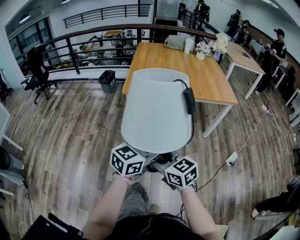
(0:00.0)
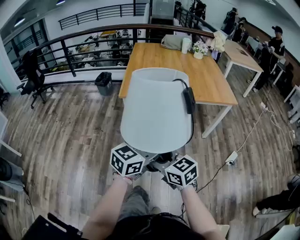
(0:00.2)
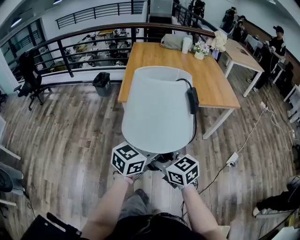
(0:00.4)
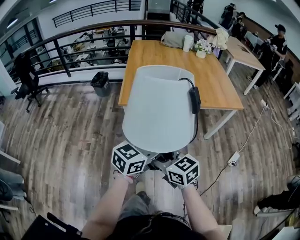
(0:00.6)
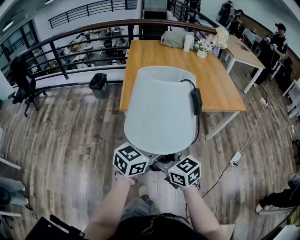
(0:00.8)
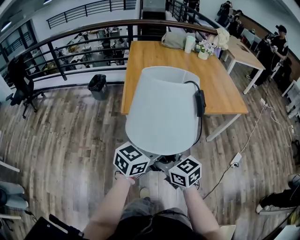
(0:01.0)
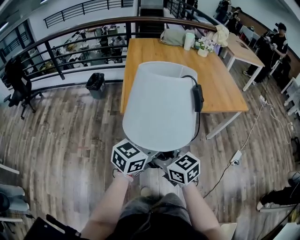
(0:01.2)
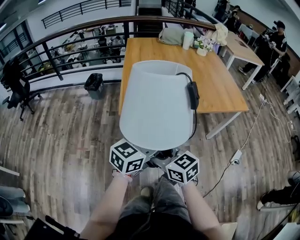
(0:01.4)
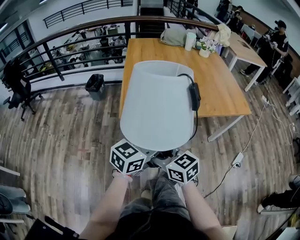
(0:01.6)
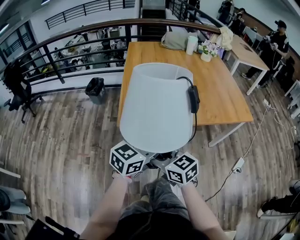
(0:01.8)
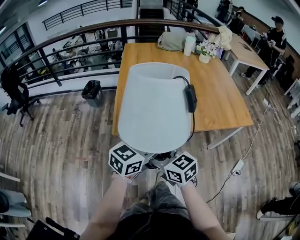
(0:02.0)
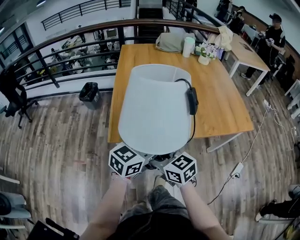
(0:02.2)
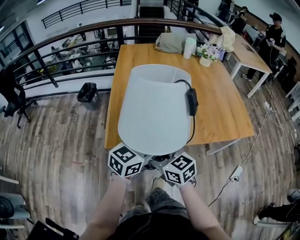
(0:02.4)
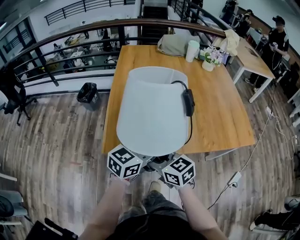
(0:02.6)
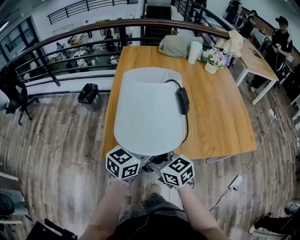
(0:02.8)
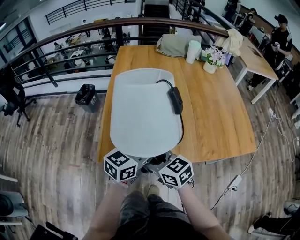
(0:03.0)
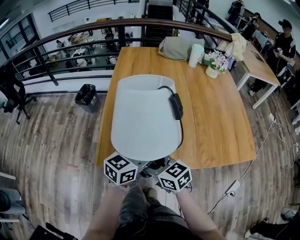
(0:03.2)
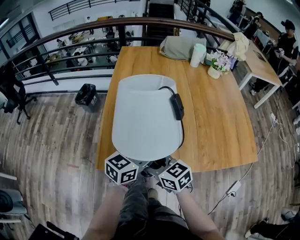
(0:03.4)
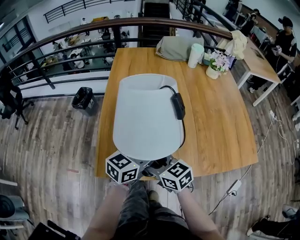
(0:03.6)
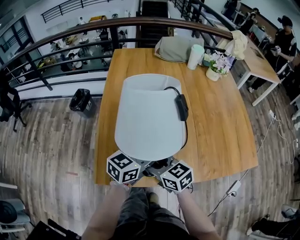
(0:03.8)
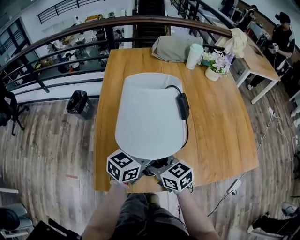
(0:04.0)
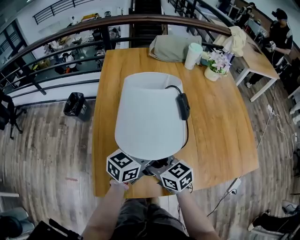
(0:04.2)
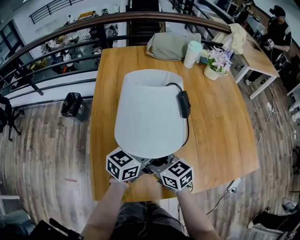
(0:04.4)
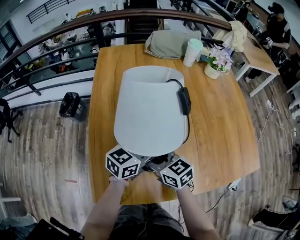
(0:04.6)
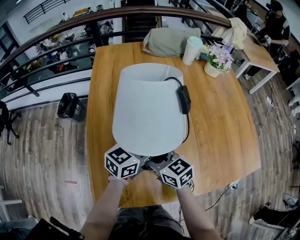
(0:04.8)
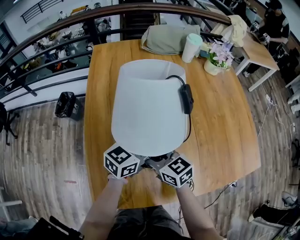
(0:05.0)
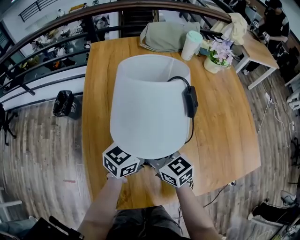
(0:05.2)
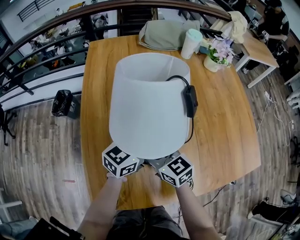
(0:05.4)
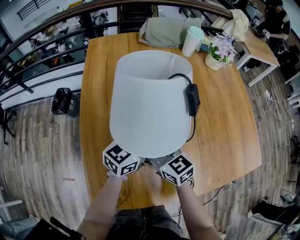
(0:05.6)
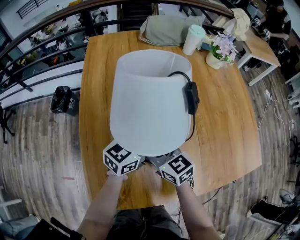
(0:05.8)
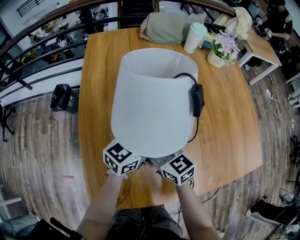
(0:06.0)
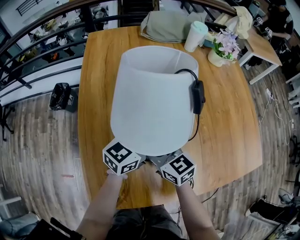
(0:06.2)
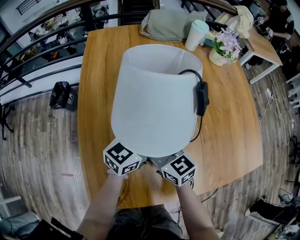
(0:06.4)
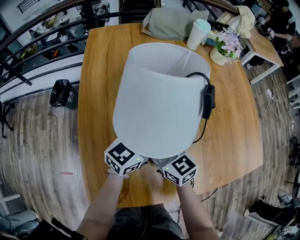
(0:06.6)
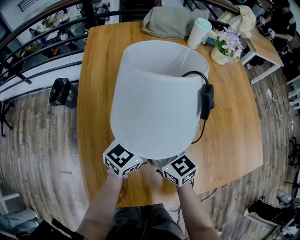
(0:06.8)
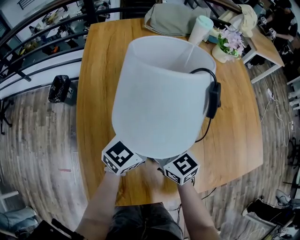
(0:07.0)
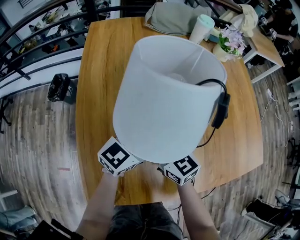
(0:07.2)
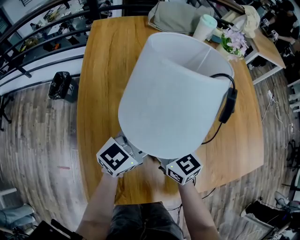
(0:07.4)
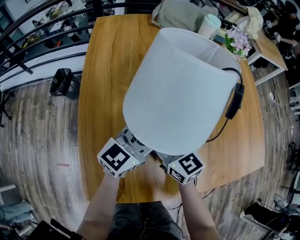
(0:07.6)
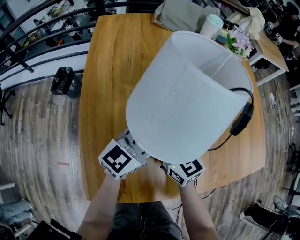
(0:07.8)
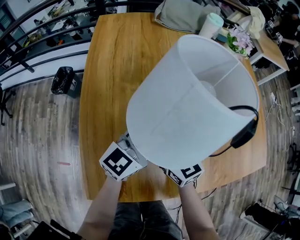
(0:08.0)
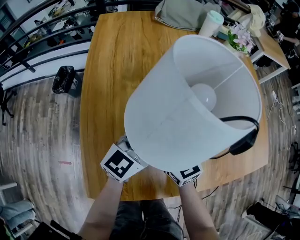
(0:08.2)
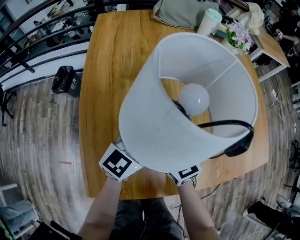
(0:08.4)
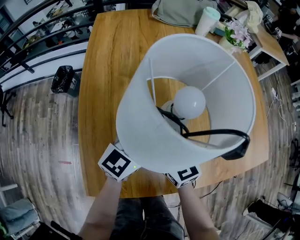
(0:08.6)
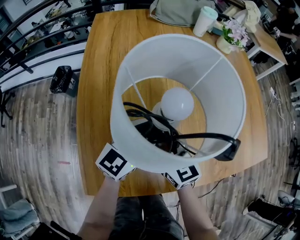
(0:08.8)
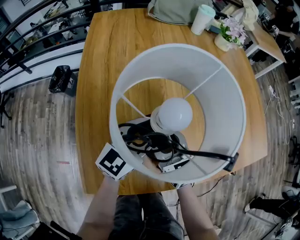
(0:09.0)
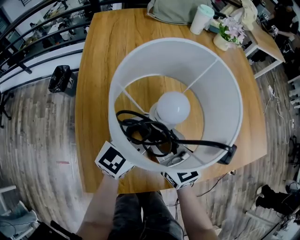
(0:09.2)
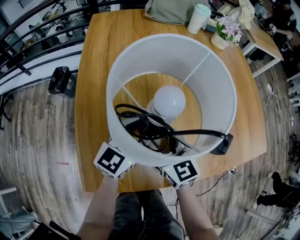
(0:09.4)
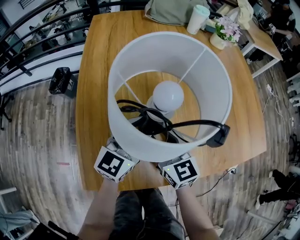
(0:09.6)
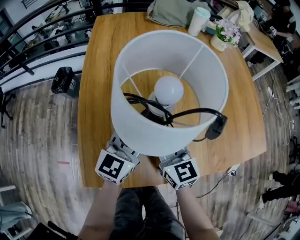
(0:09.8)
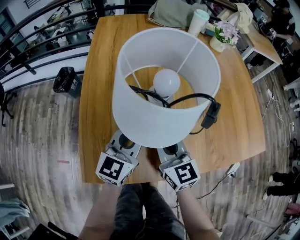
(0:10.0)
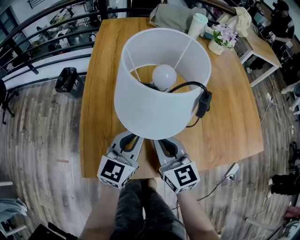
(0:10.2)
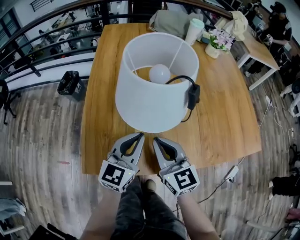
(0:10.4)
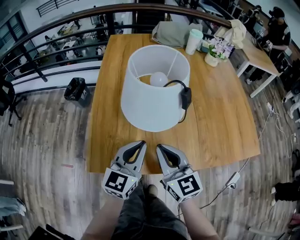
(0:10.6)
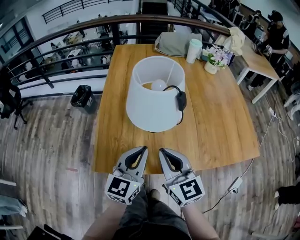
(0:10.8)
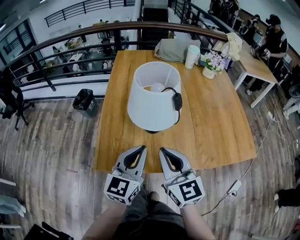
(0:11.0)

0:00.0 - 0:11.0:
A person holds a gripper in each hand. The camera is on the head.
0:00.0 - 0:01.6: The grippers both shift forward by roughly 25 cm.
0:01.6 - 0:03.2: The two grippers go about 25 cm forward.
0:03.2 - 0:04.8: The grippers both shift forward by some 20 cm.
0:04.8 - 0:07.8: The grippers stay close to where they were, moving slightly.
0:07.8 - 0:09.4: The right gripper is displaced backward by about 5 cm.
0:09.4 - 0:11.0: Both grippers move backward and upward, approximately 20 cm. The left gripper changes its angle by roughly 20 degrees, and closes; the right gripper closes up.

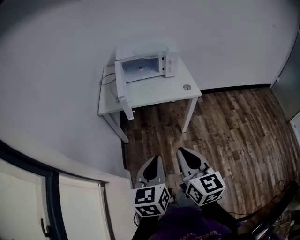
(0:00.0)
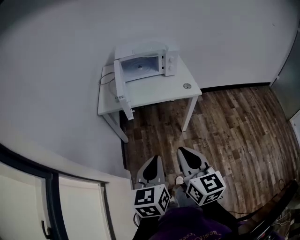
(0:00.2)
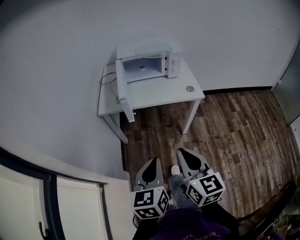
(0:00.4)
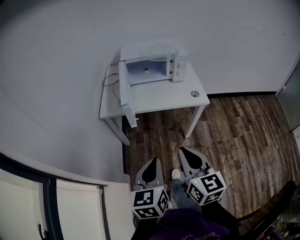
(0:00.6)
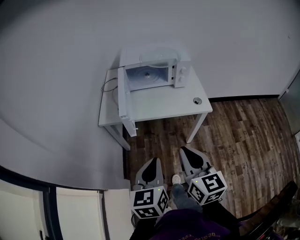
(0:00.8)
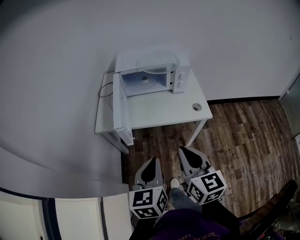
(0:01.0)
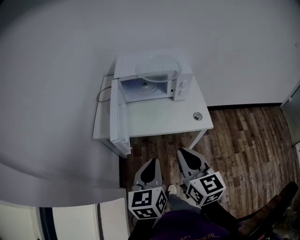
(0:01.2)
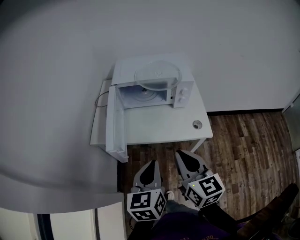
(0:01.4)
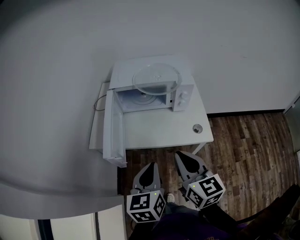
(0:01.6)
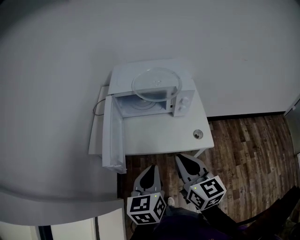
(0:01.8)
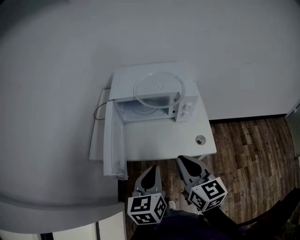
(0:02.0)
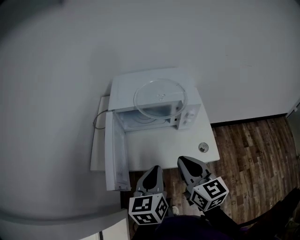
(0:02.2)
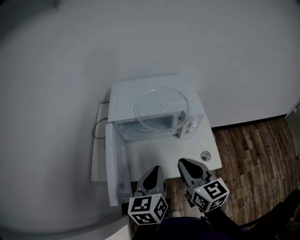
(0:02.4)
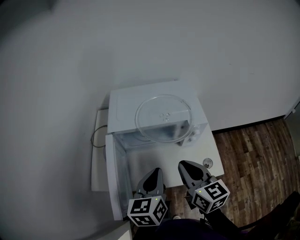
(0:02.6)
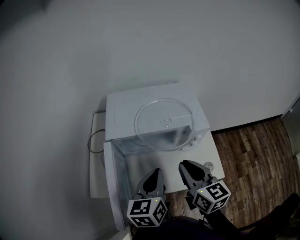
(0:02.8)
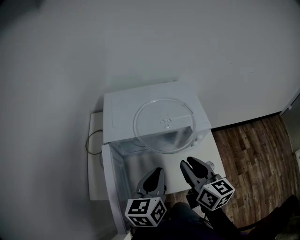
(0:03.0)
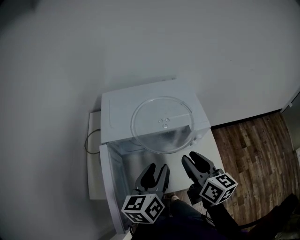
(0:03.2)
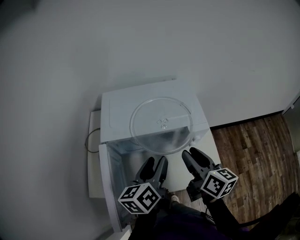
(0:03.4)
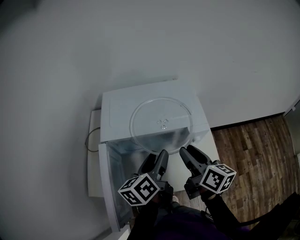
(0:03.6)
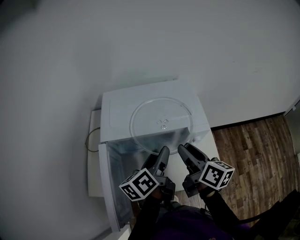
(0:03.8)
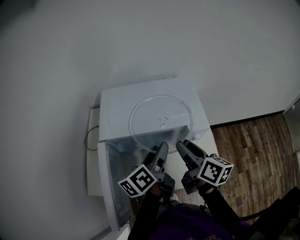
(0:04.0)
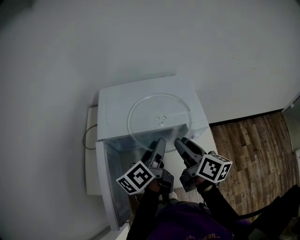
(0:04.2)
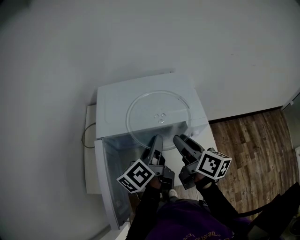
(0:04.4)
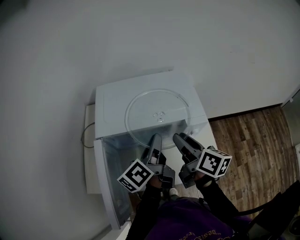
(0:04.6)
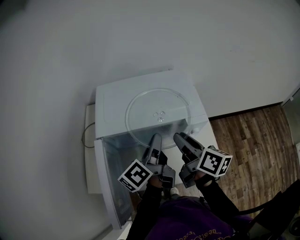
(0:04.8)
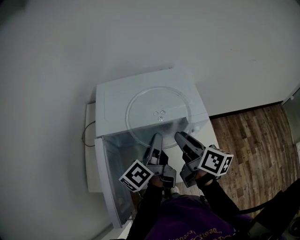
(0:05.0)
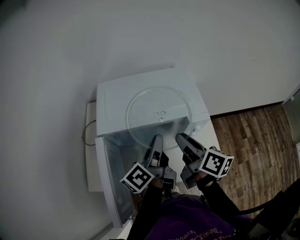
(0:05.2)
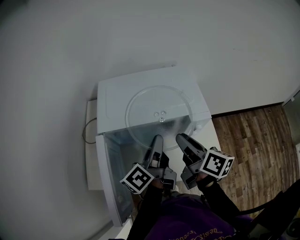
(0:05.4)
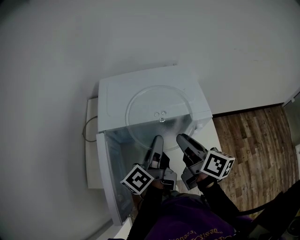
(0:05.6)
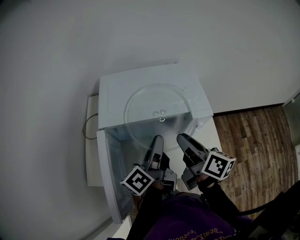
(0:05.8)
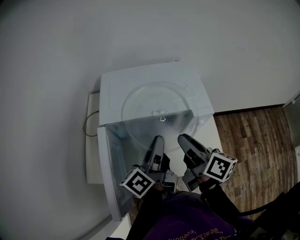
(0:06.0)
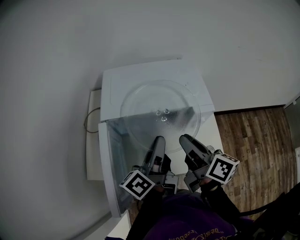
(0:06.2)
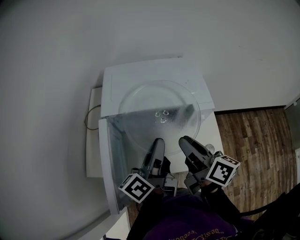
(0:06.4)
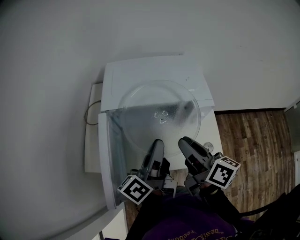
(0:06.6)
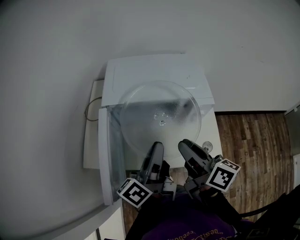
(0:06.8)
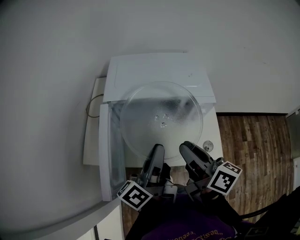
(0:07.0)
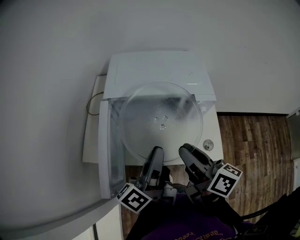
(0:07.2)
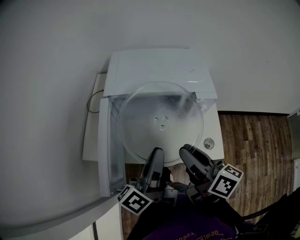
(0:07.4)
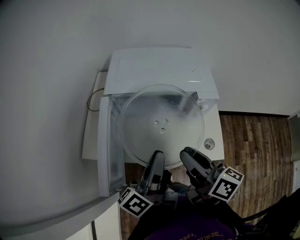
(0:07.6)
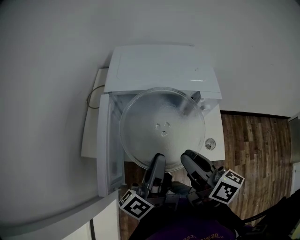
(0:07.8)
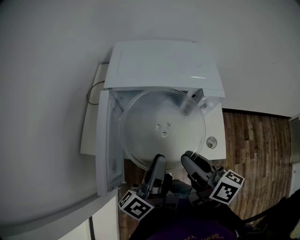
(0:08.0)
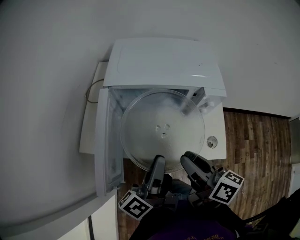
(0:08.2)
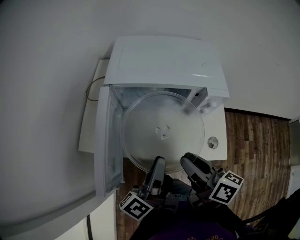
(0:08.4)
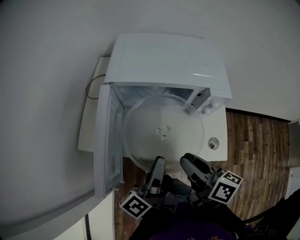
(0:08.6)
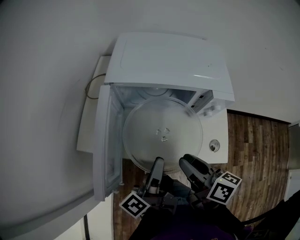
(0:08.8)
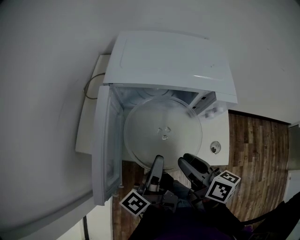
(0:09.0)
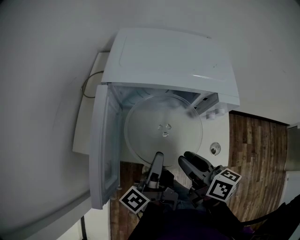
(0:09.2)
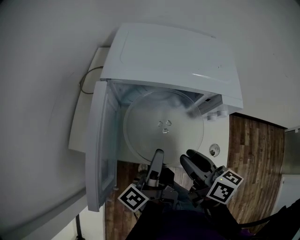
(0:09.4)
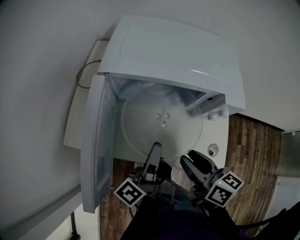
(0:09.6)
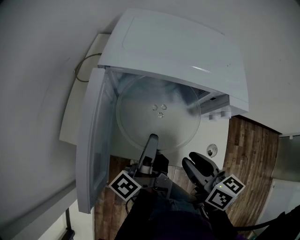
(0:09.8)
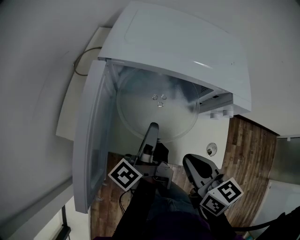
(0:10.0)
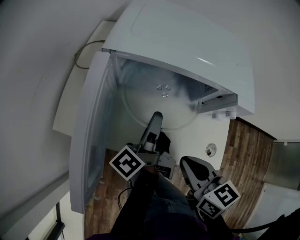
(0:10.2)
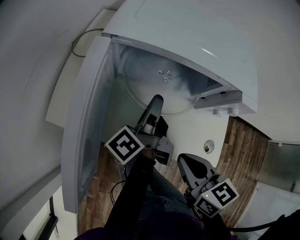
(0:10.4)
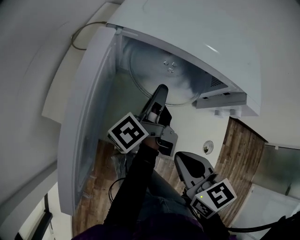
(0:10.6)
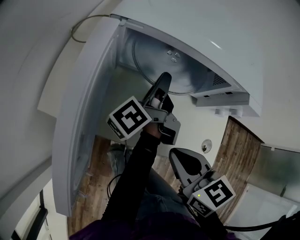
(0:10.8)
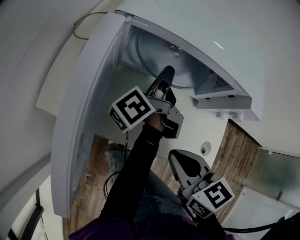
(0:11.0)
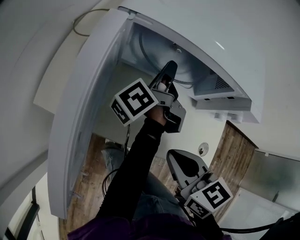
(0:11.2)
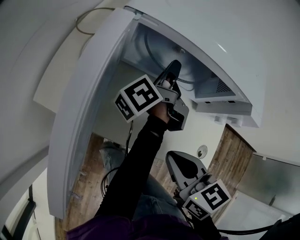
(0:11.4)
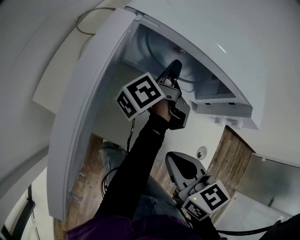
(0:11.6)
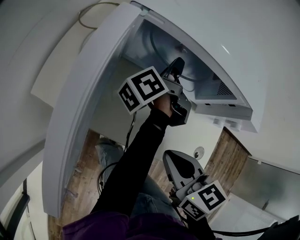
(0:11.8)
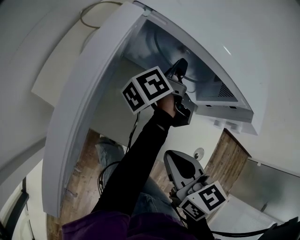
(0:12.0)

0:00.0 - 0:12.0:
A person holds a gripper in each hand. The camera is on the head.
0:00.0 - 0:01.6: The grippers both shift forward by about 30 cm.
0:01.6 - 0:03.0: The two grippers go approximately 25 cm forward. The right gripper opens its fingers.
0:03.0 - 0:04.4: The two grippers go roughly 10 cm forward. The left gripper rotates some 40 degrees, and opens, then closes once more. The right gripper changes its angle by approximately 20 degrees.
0:04.4 - 0:06.0: The left gripper shifts by roughly 5 cm.
0:06.0 - 0:07.6: Both grippers travel together backward, some 10 cm.
0:07.6 - 0:09.0: Both grippers move downward, some 10 cm.
0:09.0 - 0:10.4: The left gripper heads forward, covering approximately 15 cm. Meanwhile the right gripper turns by about 40 degrees, and closes up.
0:10.4 - 0:12.0: The left gripper shifts roughly 10 cm forward and to the right.

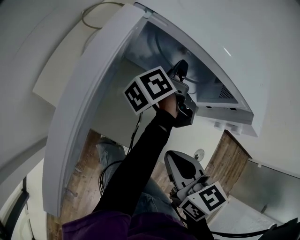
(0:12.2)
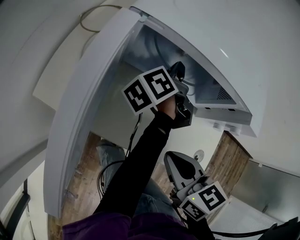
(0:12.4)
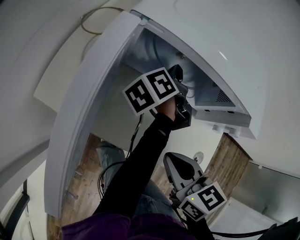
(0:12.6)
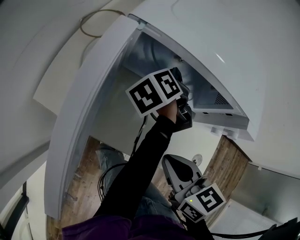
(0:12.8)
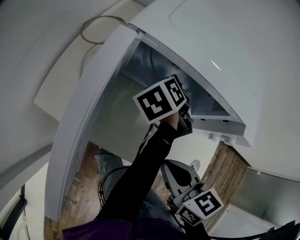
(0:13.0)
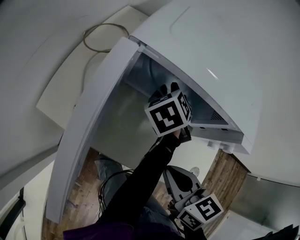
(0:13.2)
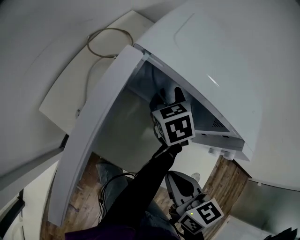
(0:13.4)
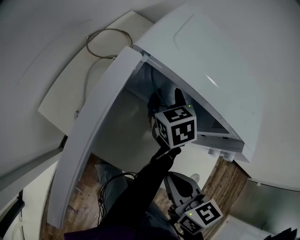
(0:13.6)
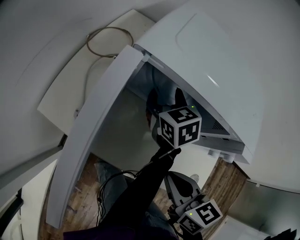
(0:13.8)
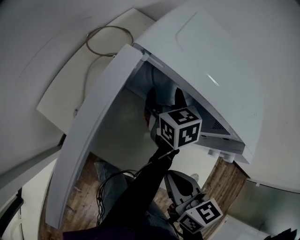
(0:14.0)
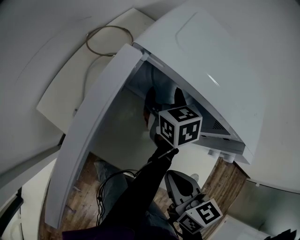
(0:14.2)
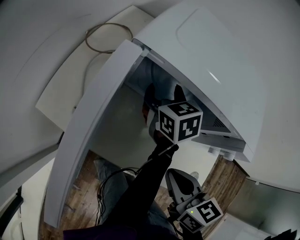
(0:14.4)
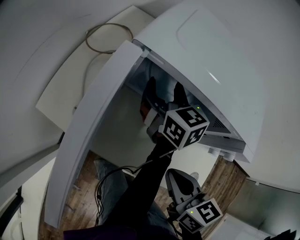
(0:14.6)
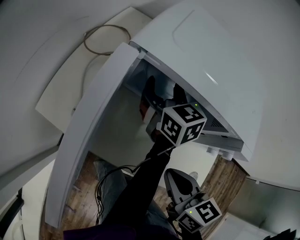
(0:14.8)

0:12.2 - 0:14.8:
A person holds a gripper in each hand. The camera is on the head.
0:12.2 - 0:13.4: The left gripper swivels some 50 degrees, and opens its fingers.
0:13.4 - 0:14.8: The left gripper changes its angle by approximately 30 degrees, and opens up.
